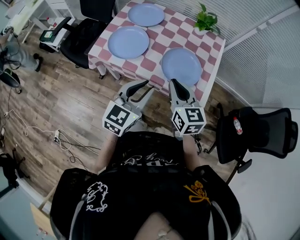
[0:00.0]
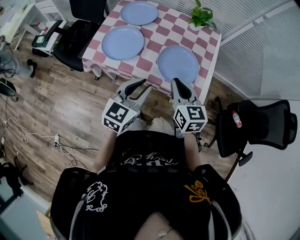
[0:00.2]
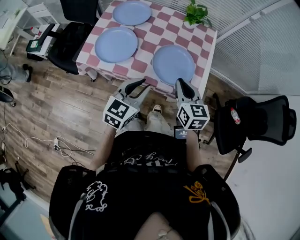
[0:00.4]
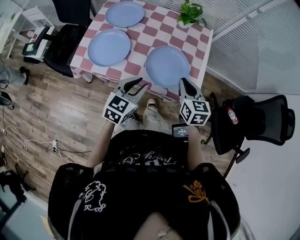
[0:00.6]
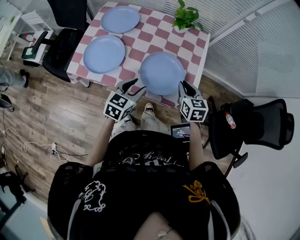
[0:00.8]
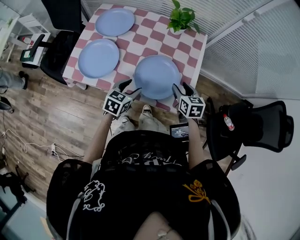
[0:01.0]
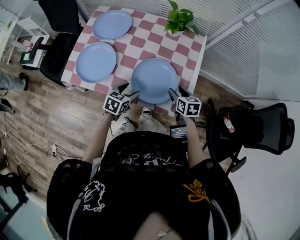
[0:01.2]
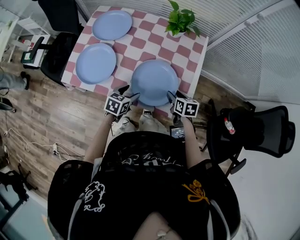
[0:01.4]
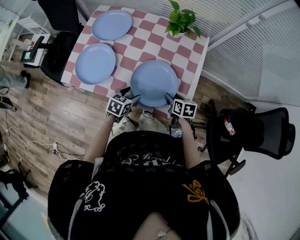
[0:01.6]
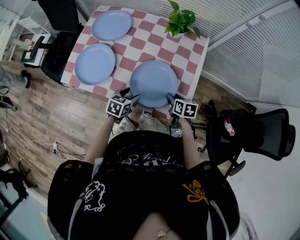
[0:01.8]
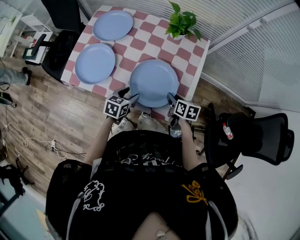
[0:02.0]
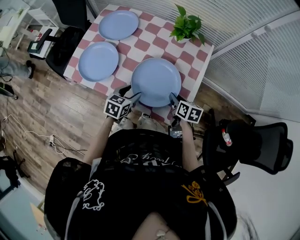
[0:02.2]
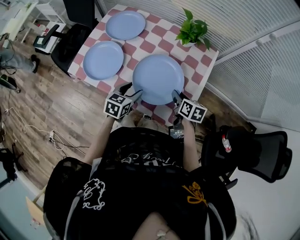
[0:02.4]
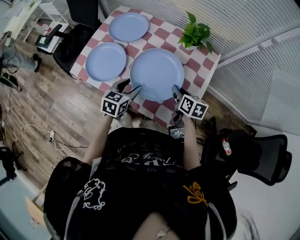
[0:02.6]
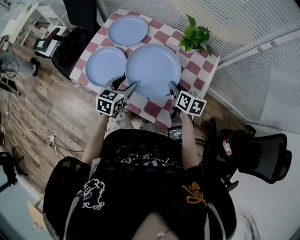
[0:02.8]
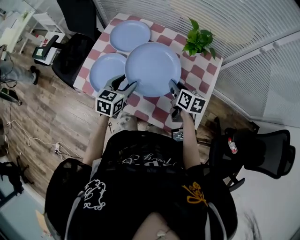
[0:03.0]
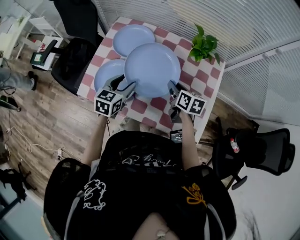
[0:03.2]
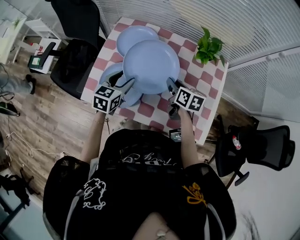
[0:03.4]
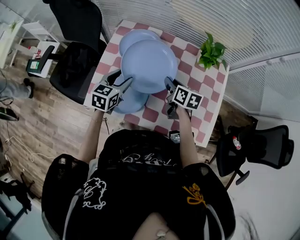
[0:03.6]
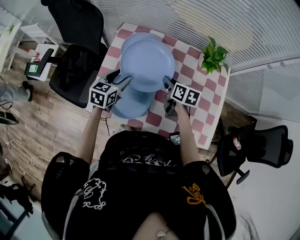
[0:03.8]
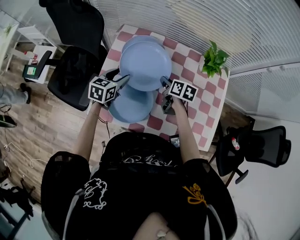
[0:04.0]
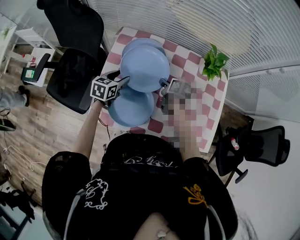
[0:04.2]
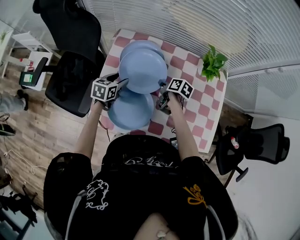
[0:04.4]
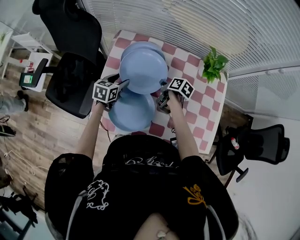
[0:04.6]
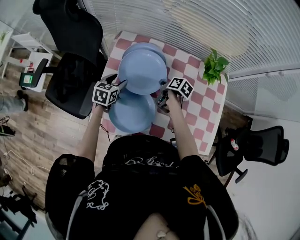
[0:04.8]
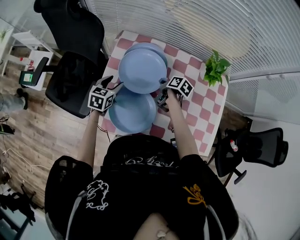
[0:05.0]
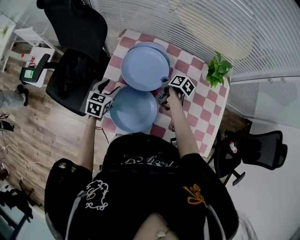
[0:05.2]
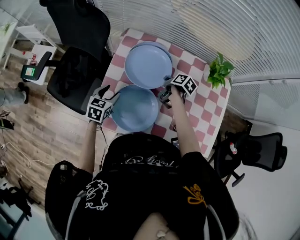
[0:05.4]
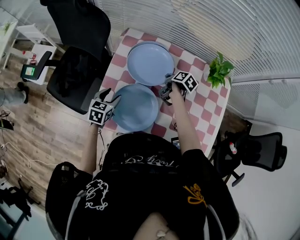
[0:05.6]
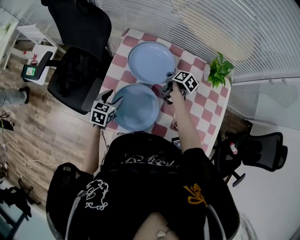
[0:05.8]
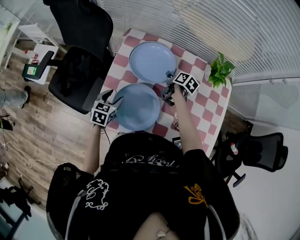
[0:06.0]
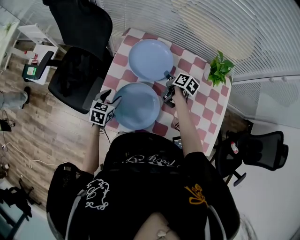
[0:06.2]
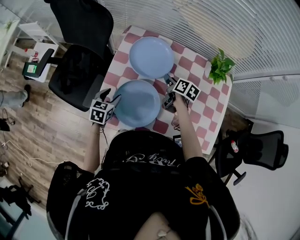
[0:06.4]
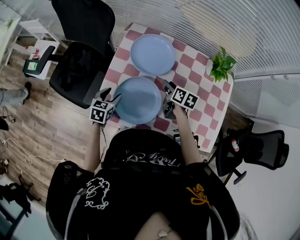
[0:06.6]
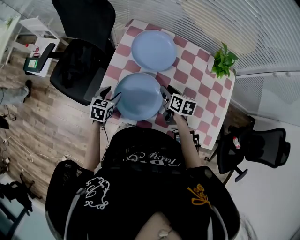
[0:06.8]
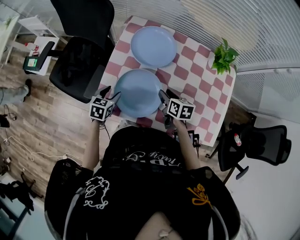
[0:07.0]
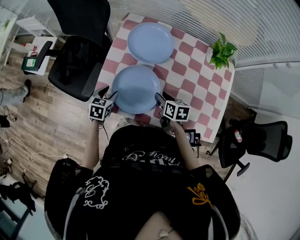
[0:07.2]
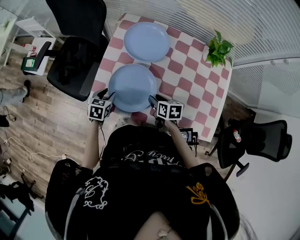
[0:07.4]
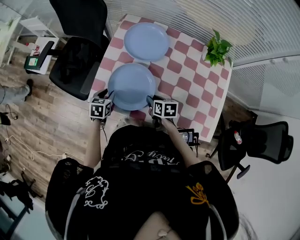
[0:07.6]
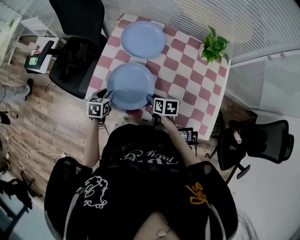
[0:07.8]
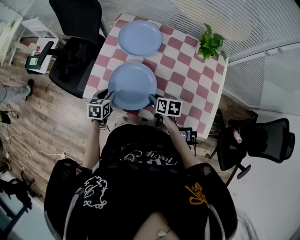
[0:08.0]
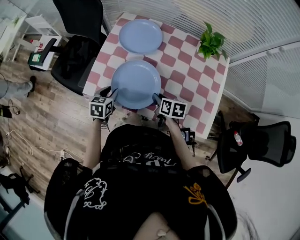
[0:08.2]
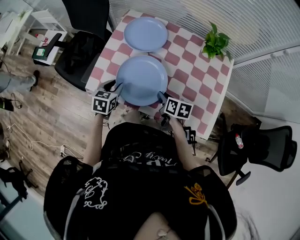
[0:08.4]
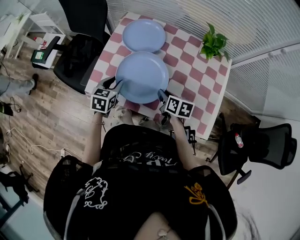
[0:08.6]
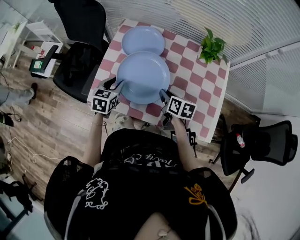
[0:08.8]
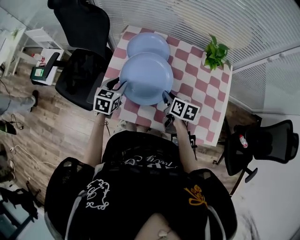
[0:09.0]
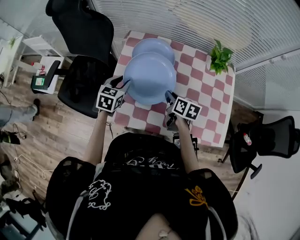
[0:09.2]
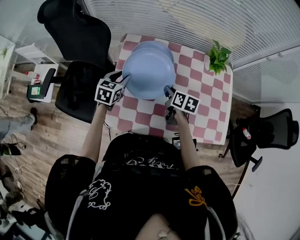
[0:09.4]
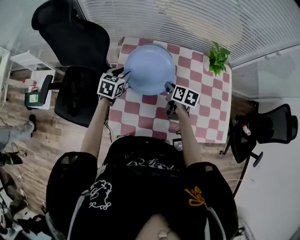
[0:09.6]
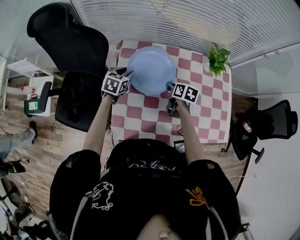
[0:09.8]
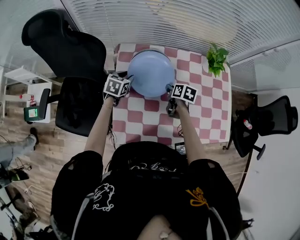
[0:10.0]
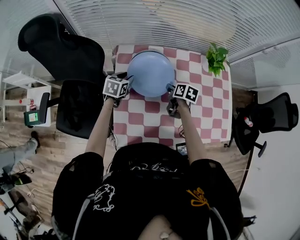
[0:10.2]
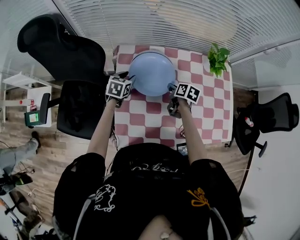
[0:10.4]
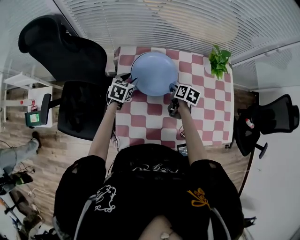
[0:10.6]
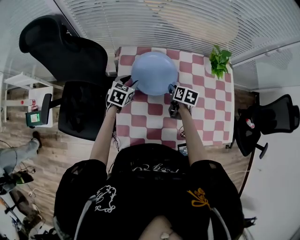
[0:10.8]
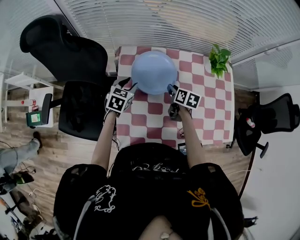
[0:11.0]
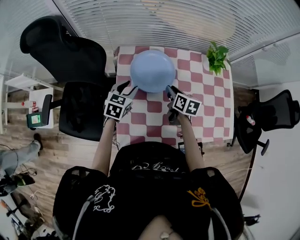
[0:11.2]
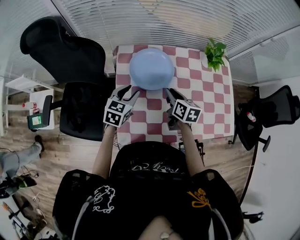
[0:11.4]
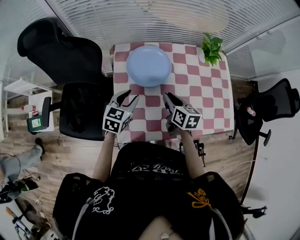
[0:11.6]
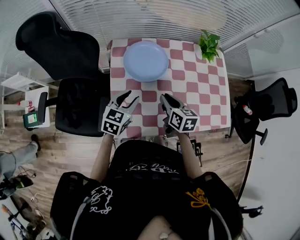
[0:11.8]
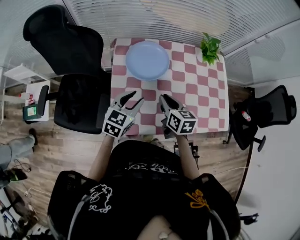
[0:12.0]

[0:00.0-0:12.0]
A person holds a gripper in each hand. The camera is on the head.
0:00.0 to 0:01.6: The left gripper travels downward and forward by about 30 cm, tilts its fingers about 30 degrees downward, and opens its fingers; the right gripper travels downward, to the right and forward by some 35 cm, tips its fingers downward by roughly 30 degrees, and opens.
0:01.6 to 0:03.0: The right gripper moves forward, upward and to the left, some 20 cm, while the left gripper goes some 20 cm upward, to the left and forward, and rotates about 20 degrees.
0:03.0 to 0:04.4: The grippers both shift to the left, forward and downward by roughly 25 cm. The right gripper rotates approximately 30 degrees.
0:04.4 to 0:06.0: The left gripper goes about 10 cm backward, while the right gripper travels forward by roughly 5 cm.
0:06.0 to 0:07.6: The right gripper moves backward, about 25 cm, and changes its angle by about 40 degrees. The left gripper shifts about 10 cm backward, and closes up.
0:07.6 to 0:09.0: The right gripper moves upward and to the right, about 10 cm, and rotates approximately 20 degrees; the left gripper is displaced upward, forward and to the right by approximately 15 cm.
0:09.0 to 0:10.4: The left gripper is displaced forward by roughly 20 cm. Meanwhile the right gripper goes approximately 15 cm forward and downward, and rotates some 20 degrees.
0:10.4 to 0:12.0: The right gripper heads backward and upward, covering approximately 20 cm, and swivels roughly 30 degrees. The left gripper shifts about 25 cm backward, upward and to the right, and changes its angle by roughly 20 degrees.

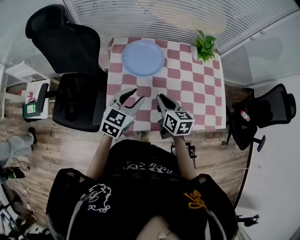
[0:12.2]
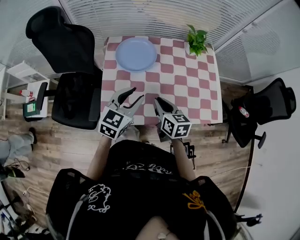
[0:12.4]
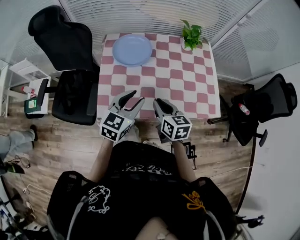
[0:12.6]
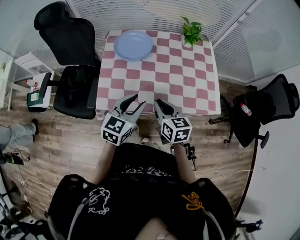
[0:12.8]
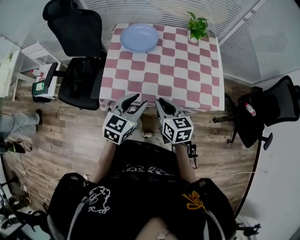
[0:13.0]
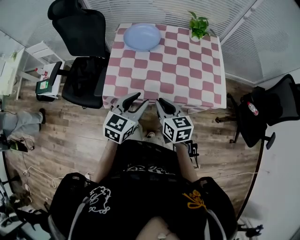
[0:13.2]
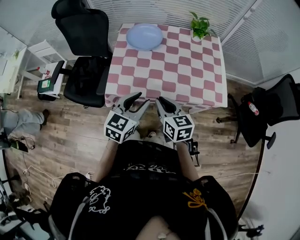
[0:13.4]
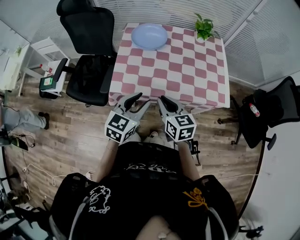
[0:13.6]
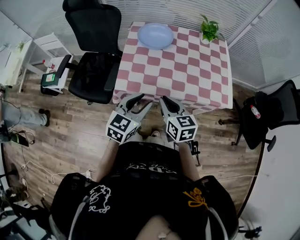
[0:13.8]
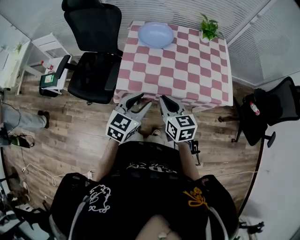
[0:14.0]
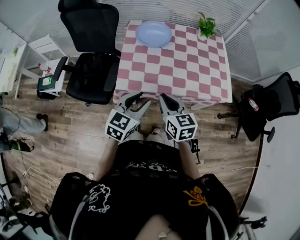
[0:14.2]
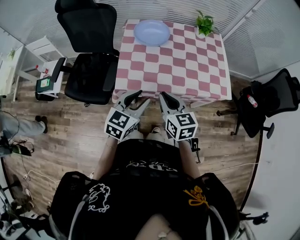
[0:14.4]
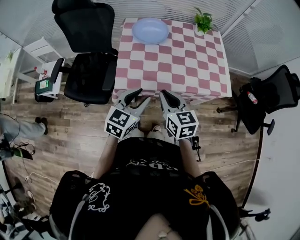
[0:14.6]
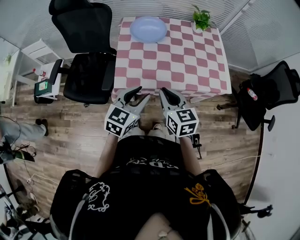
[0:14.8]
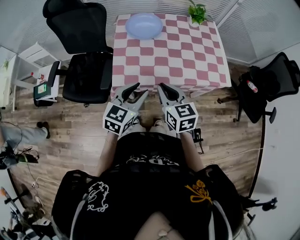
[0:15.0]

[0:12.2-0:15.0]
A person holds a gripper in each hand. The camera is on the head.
0:12.2 to 0:13.6: Both grippers travel together backward, roughly 25 cm.
0:13.6 to 0:15.0: Both grippers travel together to the left, some 5 cm.

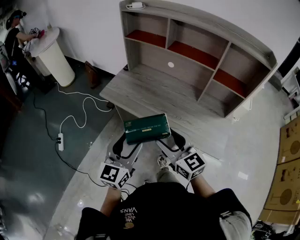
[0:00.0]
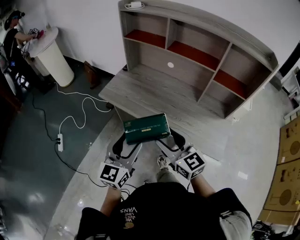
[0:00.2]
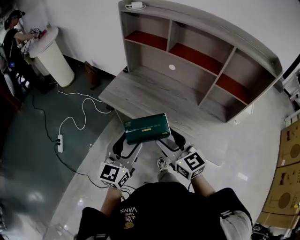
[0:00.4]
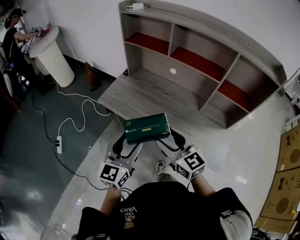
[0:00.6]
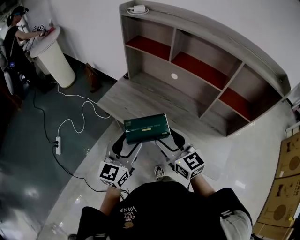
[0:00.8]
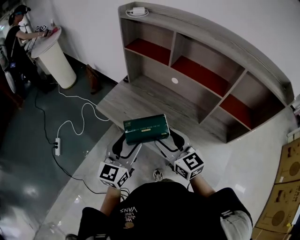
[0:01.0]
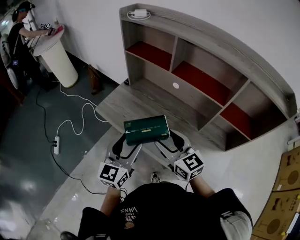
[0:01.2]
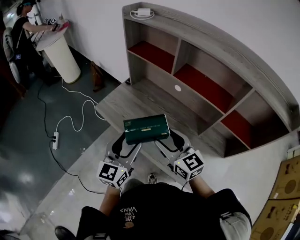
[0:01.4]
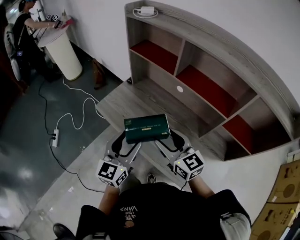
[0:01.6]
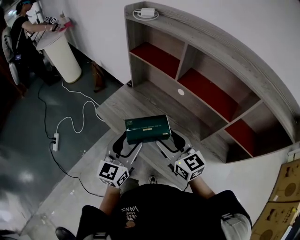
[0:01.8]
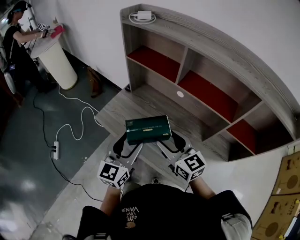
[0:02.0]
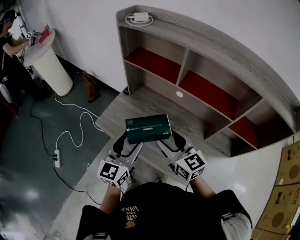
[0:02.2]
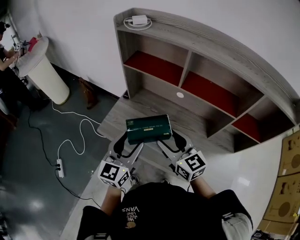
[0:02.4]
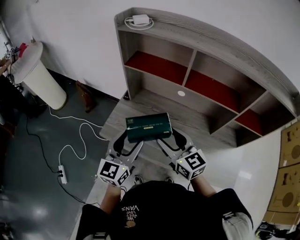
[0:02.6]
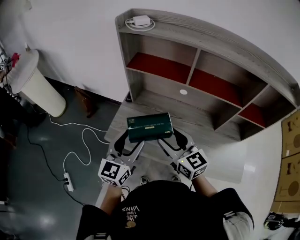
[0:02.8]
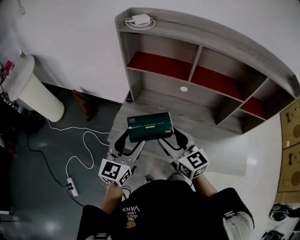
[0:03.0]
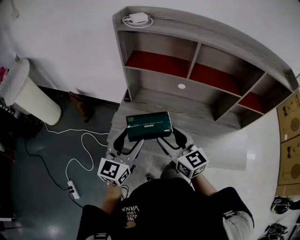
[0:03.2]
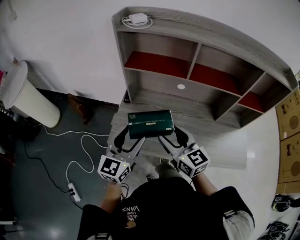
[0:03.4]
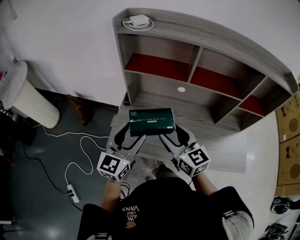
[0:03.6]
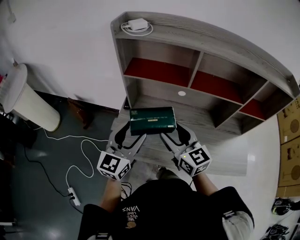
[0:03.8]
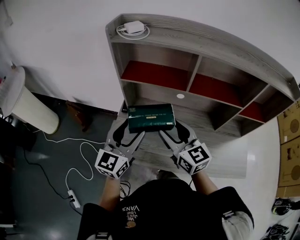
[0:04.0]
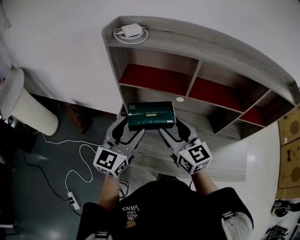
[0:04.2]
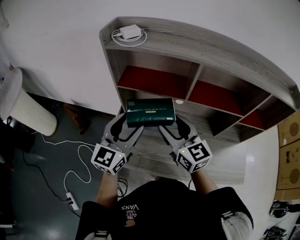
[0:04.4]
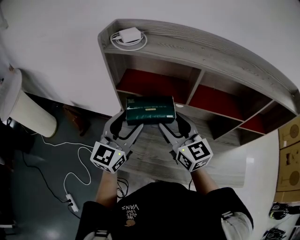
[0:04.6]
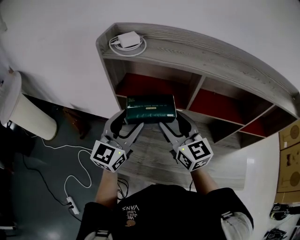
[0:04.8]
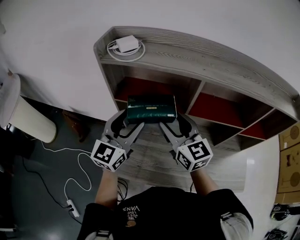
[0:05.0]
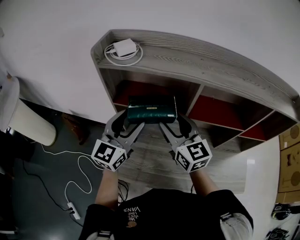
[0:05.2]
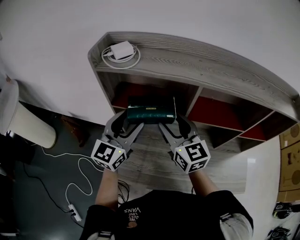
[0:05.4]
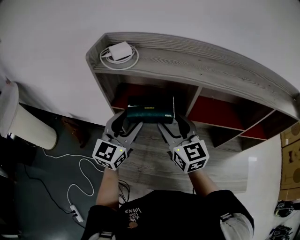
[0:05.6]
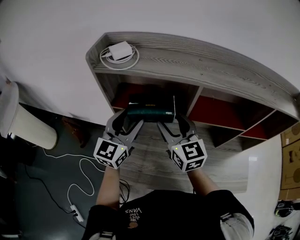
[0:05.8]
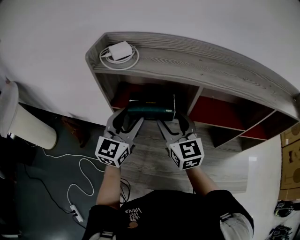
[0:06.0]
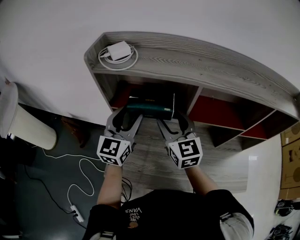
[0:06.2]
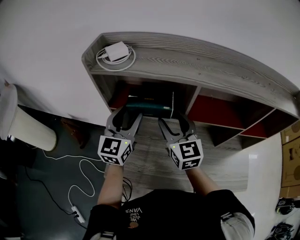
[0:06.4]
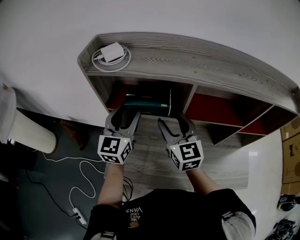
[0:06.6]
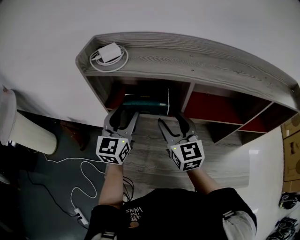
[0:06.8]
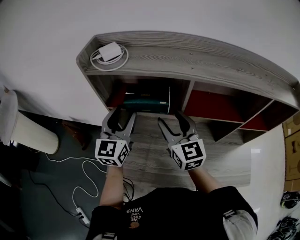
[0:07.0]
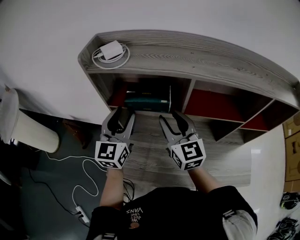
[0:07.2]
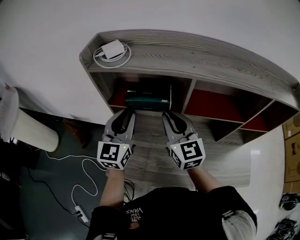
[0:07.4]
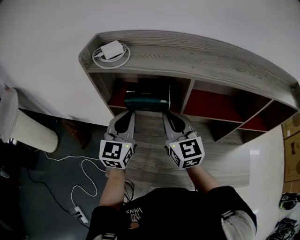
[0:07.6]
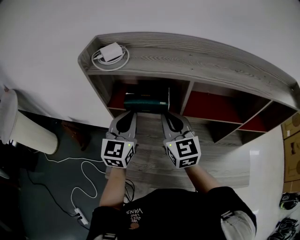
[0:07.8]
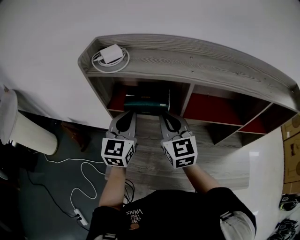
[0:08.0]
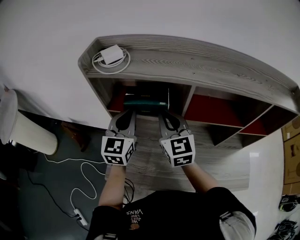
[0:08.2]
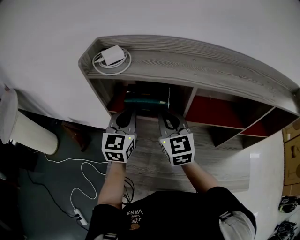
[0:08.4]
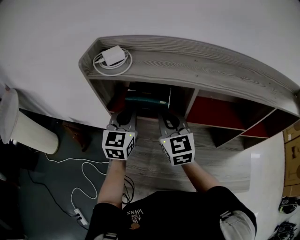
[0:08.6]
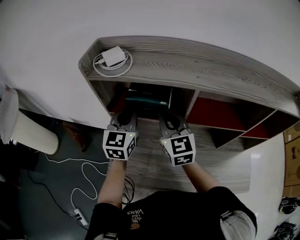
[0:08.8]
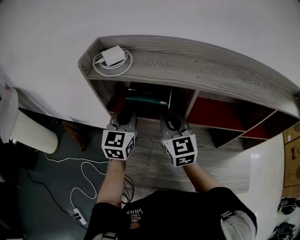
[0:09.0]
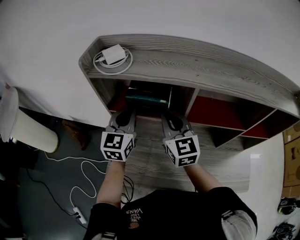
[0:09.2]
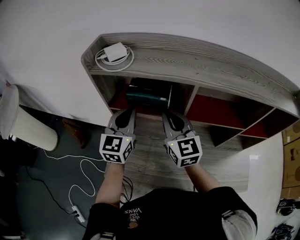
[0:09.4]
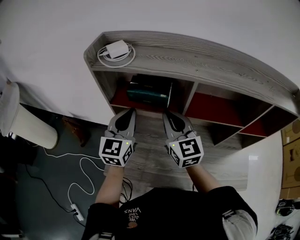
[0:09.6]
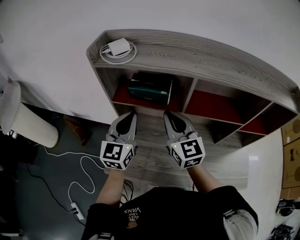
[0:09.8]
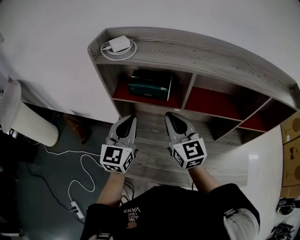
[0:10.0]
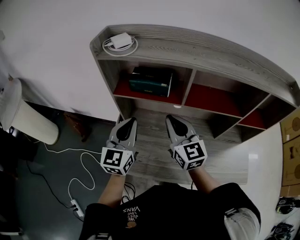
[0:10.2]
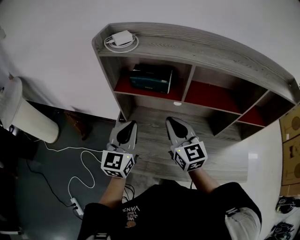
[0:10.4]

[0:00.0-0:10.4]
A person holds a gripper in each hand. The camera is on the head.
0:00.0 to 0:01.4: Both grippers travel together forward, about 20 cm.
0:01.4 to 0:03.0: The left gripper is displaced forward and to the left by about 20 cm, and changes its angle by about 20 degrees, while the right gripper moves to the left and forward, about 20 cm, and changes its angle by some 30 degrees.
0:03.0 to 0:04.4: Both grippers travel together forward and upward, approximately 15 cm.
0:04.4 to 0:06.0: Both grippers move forward, some 10 cm.
0:06.0 to 0:07.4: The left gripper closes up; the right gripper closes its fingers.
0:07.4 to 0:09.0: The left gripper heads forward, covering some 5 cm.
0:09.0 to 0:10.4: Both grippers move backward, some 15 cm.
